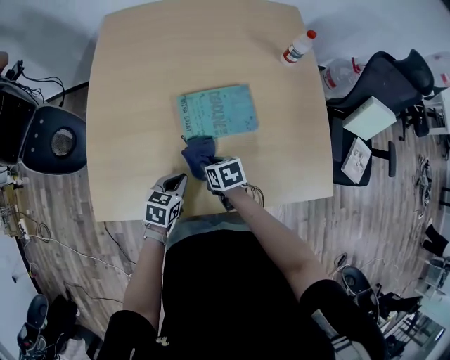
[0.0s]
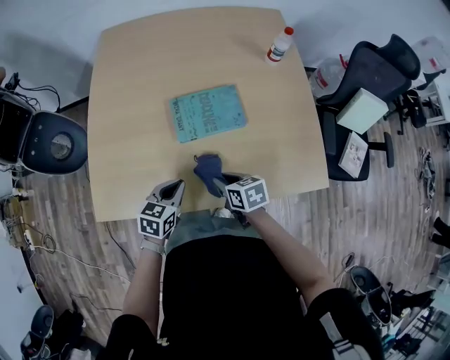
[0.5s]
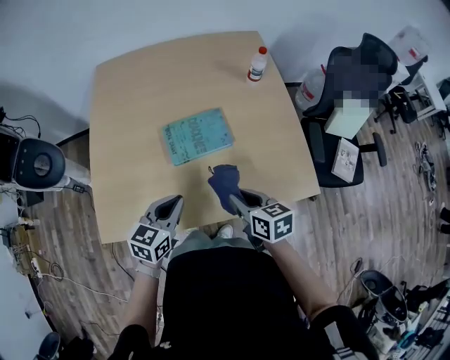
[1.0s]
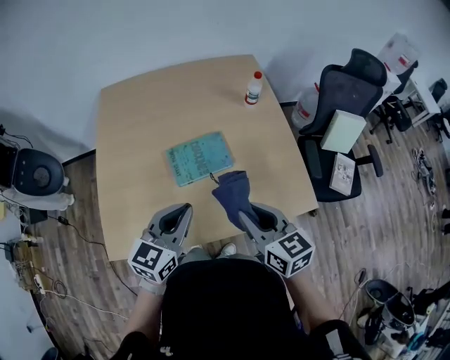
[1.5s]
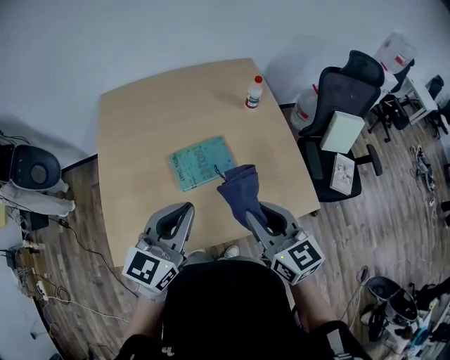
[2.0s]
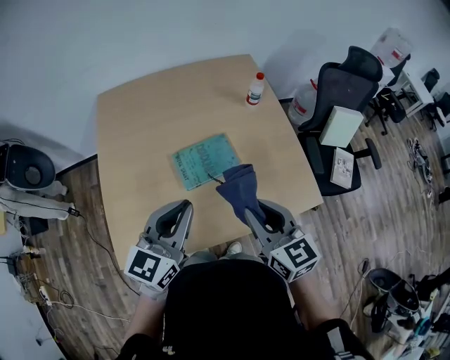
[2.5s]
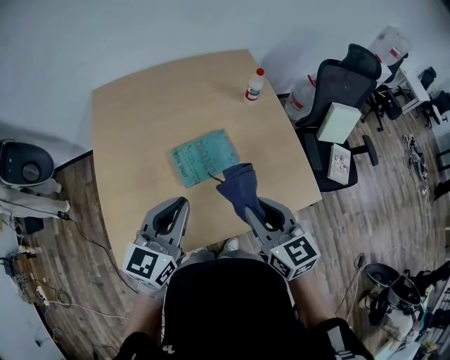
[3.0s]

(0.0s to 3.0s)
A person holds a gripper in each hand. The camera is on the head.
0.0s - 1.5s: The right gripper goes some 35 cm upward and to the right, and angles its fingers upward, by approximately 40 degrees; the left gripper shifts about 30 cm upward, and angles its fingers upward, by some 30 degrees.
1.5s - 3.0s: The left gripper travels to the left by some 5 cm, while the right gripper shifts by some 5 cm.

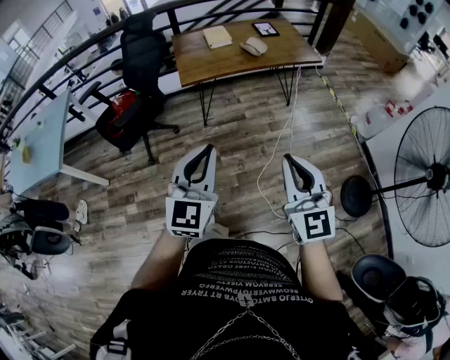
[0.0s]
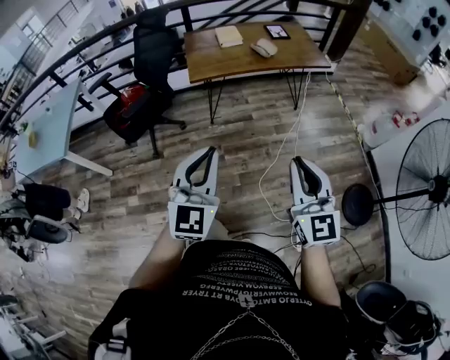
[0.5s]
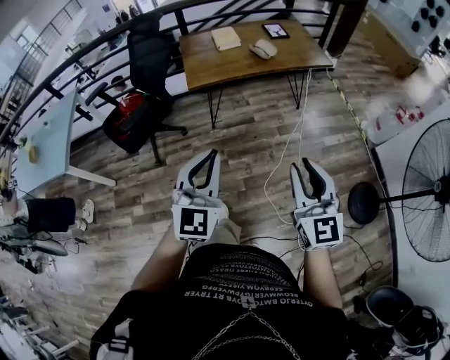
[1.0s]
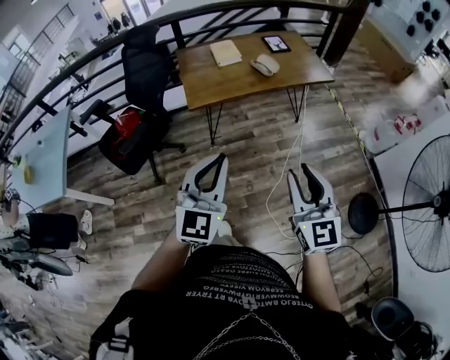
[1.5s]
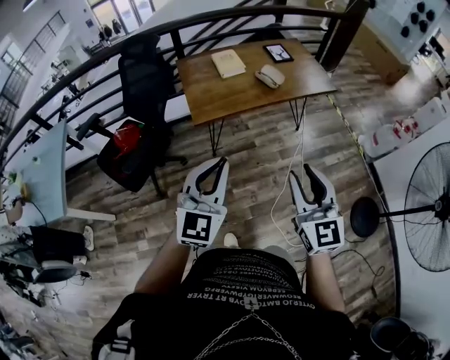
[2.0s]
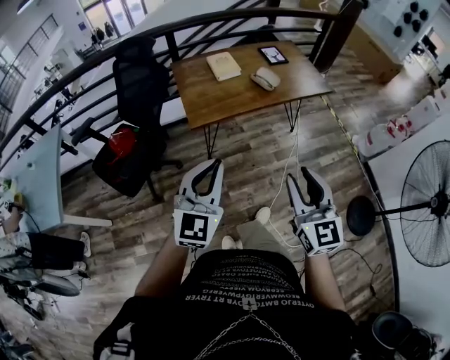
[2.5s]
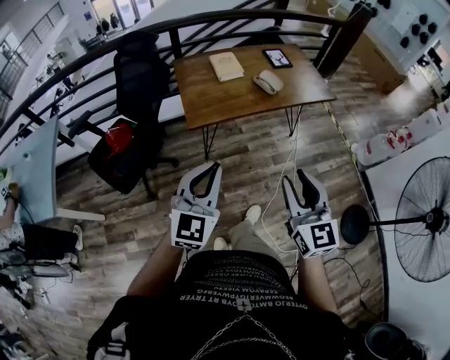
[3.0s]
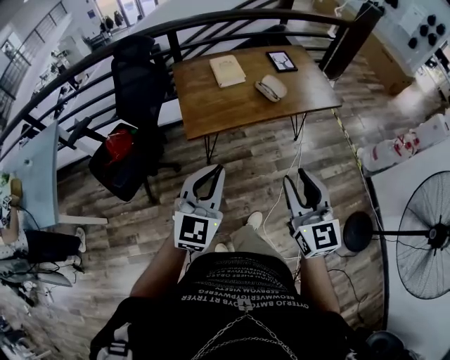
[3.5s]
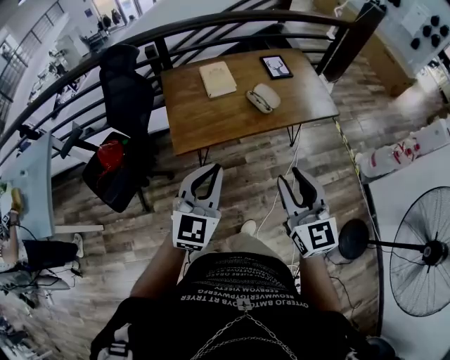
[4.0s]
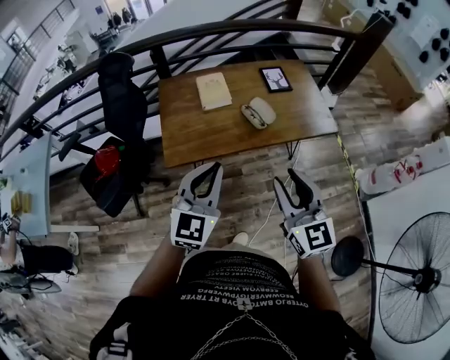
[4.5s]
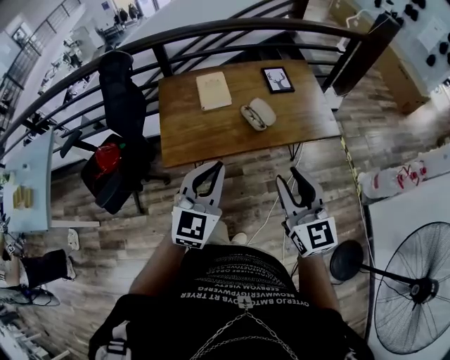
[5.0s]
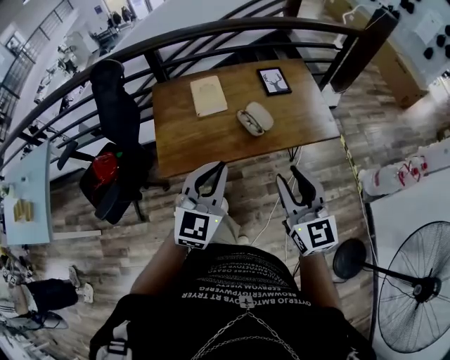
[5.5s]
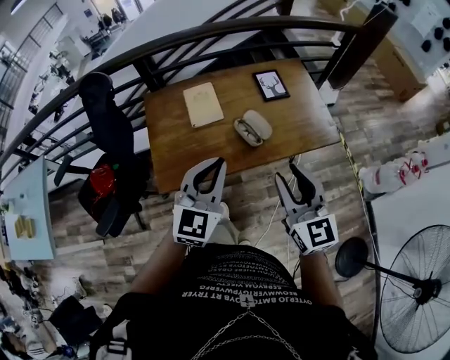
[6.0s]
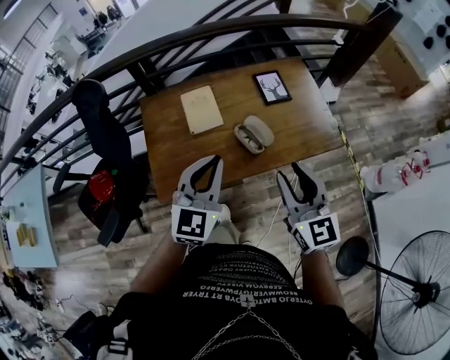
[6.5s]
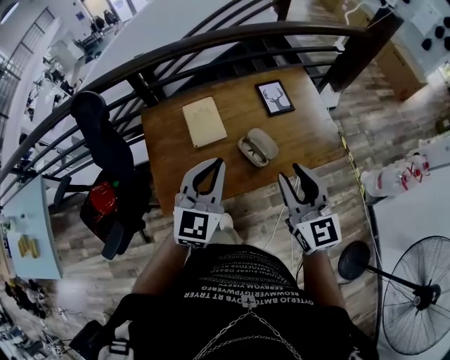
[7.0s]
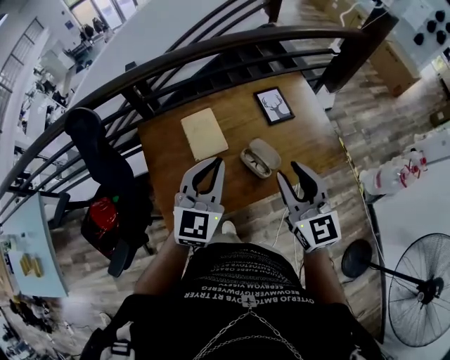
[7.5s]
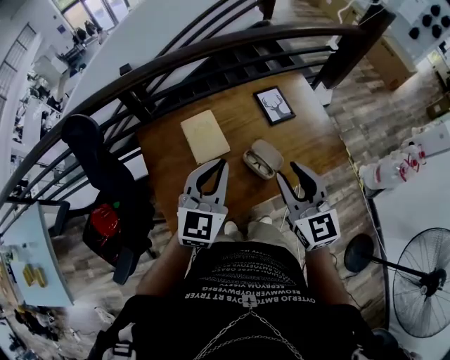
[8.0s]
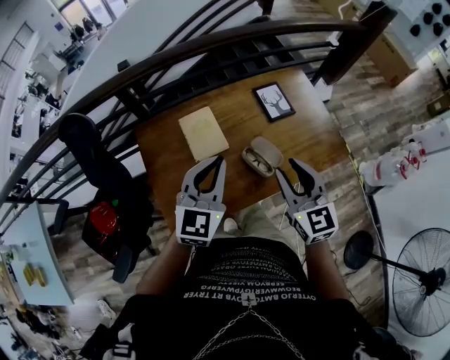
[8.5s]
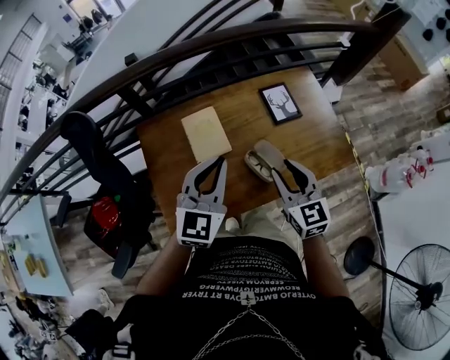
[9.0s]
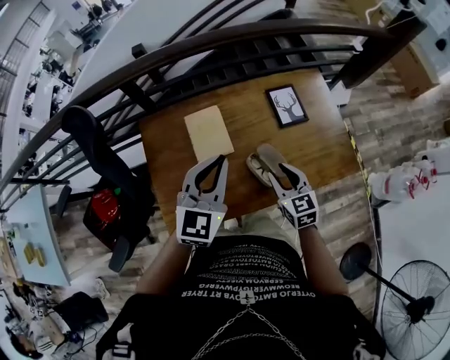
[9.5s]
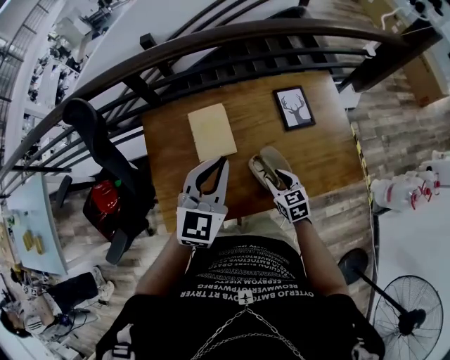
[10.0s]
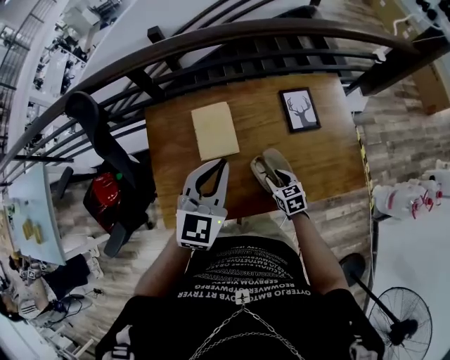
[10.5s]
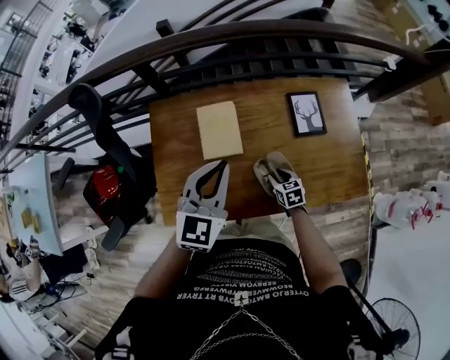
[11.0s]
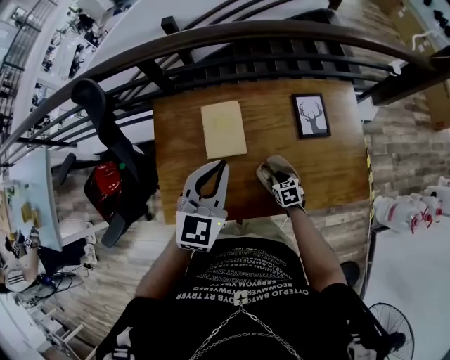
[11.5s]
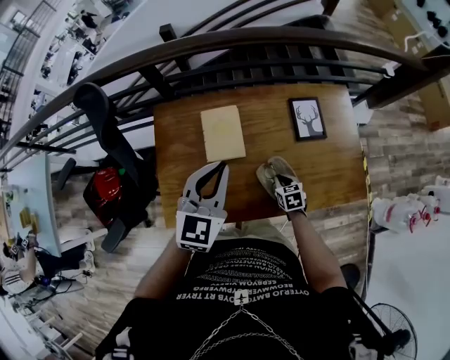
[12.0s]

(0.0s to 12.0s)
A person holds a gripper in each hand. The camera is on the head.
0.0s - 2.0s: The two grippers go some 20 cm forward. The right gripper opens its fingers.
2.0s - 4.0s: The grippers both shift forward by roughly 20 cm.
4.0s - 6.0s: The grippers both shift forward and to the right by some 25 cm.
6.0s - 8.0s: The right gripper travels forward and to the left by about 20 cm; the left gripper shifts approximately 20 cm forward.
8.0s - 10.0s: The right gripper moves downward, about 30 cm, and points its fingers approximately 30 degrees further downward. Meanwhile the left gripper is displaced forward by some 5 cm.
10.0s - 12.0s: The right gripper heads downward, covering some 10 cm, and closes its fingers.

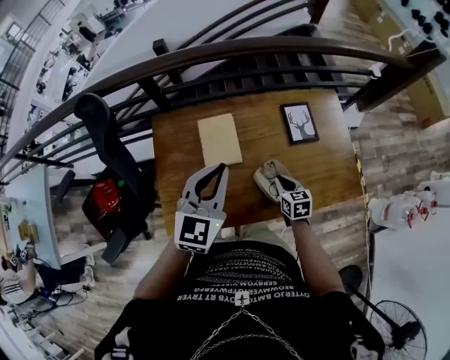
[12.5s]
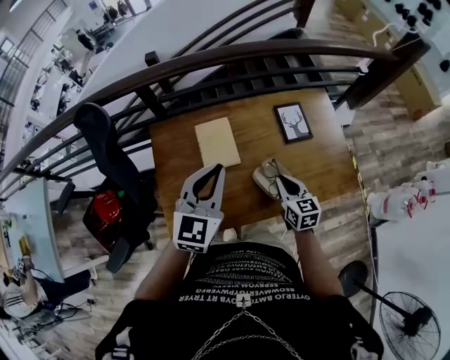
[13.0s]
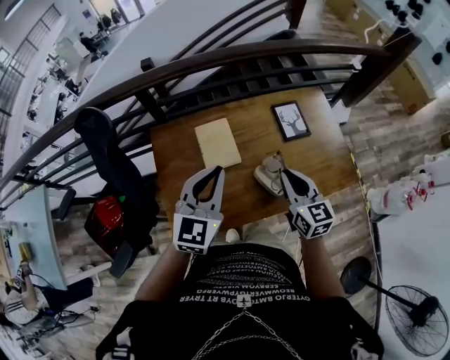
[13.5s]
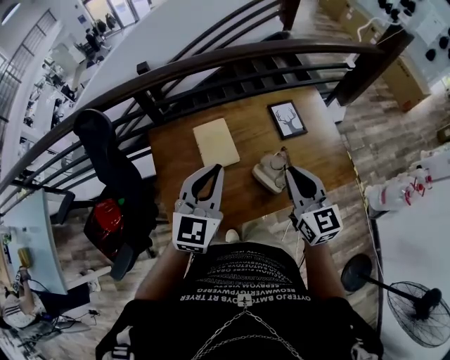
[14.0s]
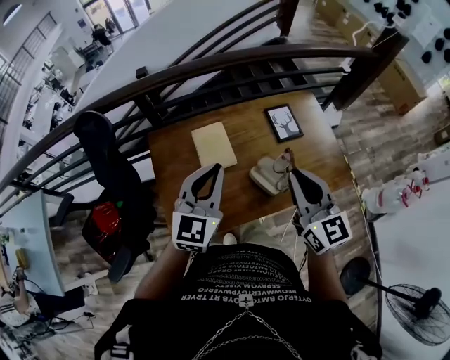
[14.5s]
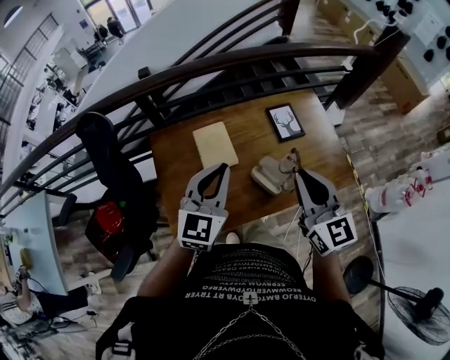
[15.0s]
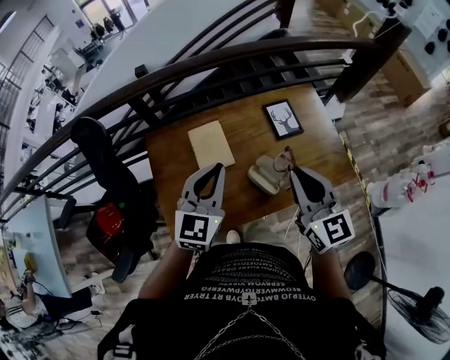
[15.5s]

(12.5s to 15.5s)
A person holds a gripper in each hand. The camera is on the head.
12.5s - 14.0s: The left gripper shifts by about 5 cm; the right gripper heads upward, covering roughly 25 cm, and angles its fingers upward, by approximately 30 degrees.
14.0s - 15.5s: The right gripper heads upward, covering some 5 cm.

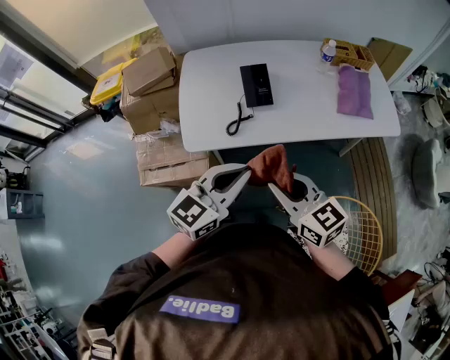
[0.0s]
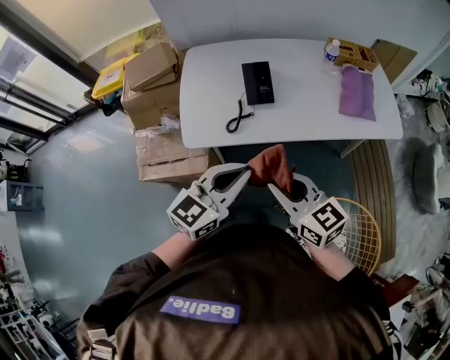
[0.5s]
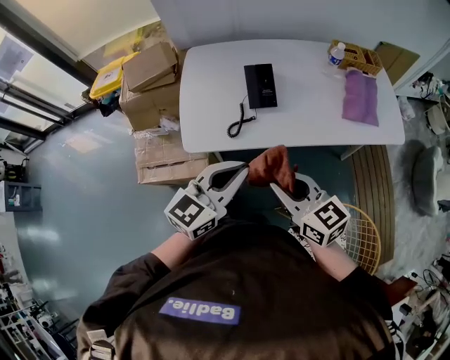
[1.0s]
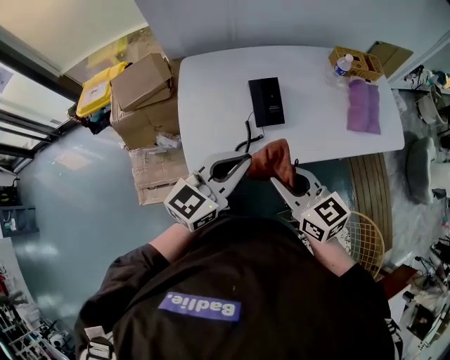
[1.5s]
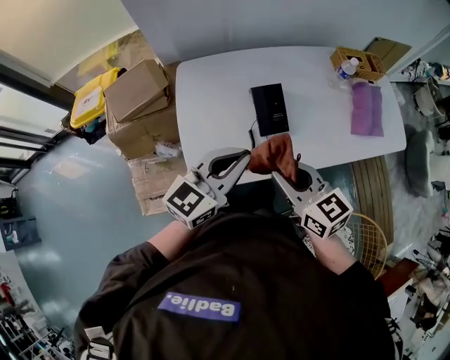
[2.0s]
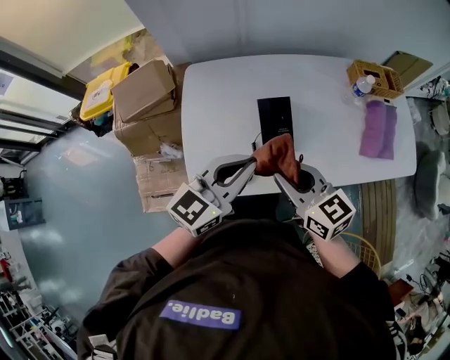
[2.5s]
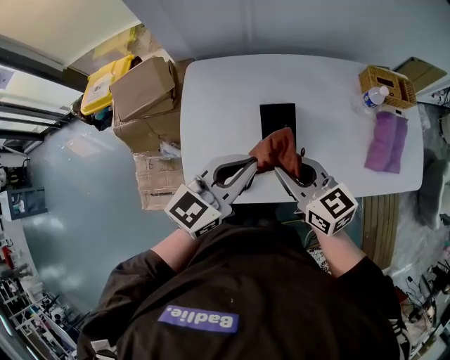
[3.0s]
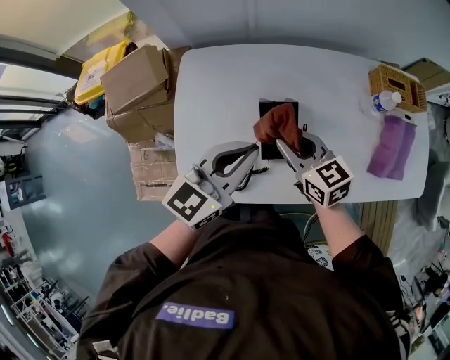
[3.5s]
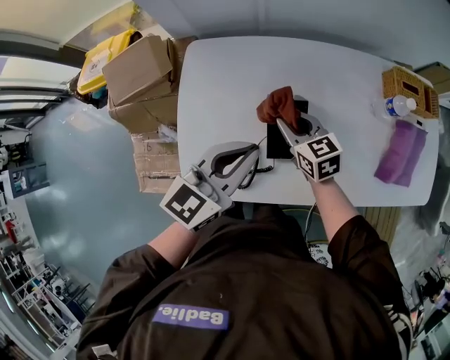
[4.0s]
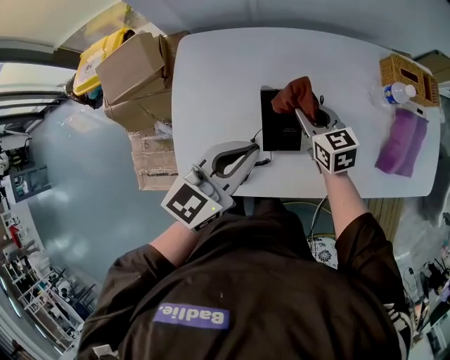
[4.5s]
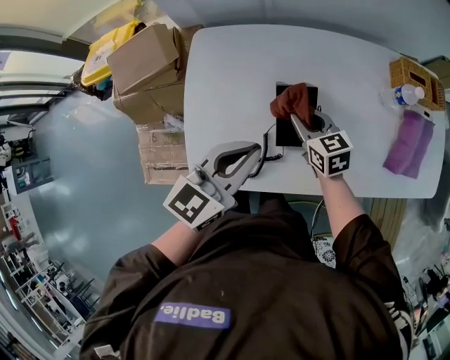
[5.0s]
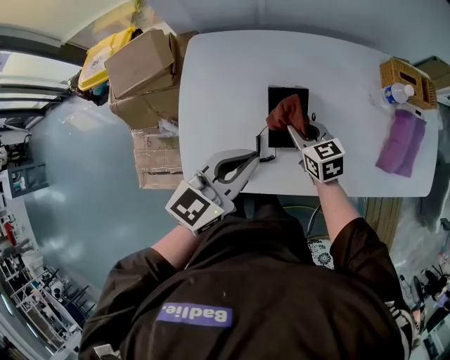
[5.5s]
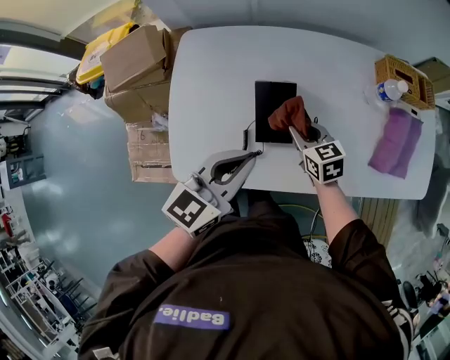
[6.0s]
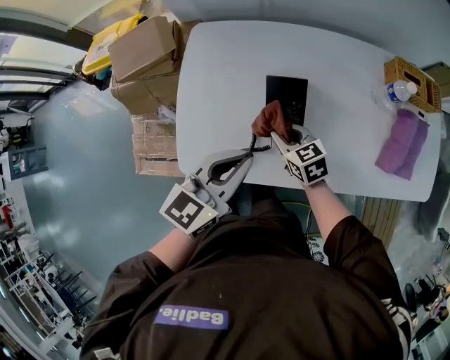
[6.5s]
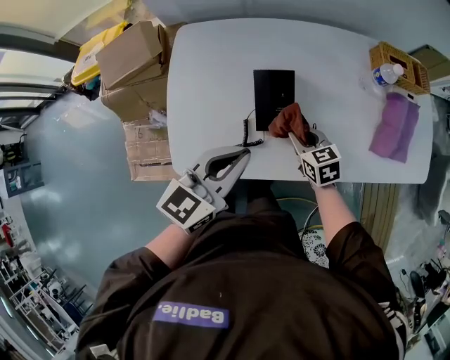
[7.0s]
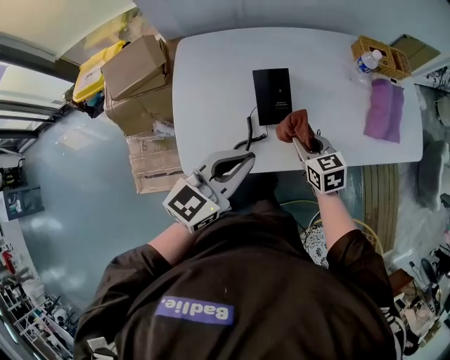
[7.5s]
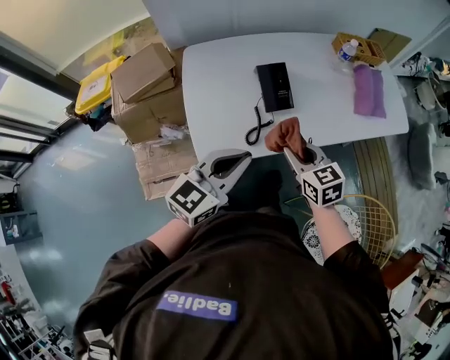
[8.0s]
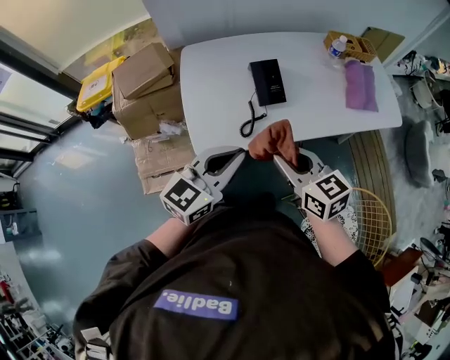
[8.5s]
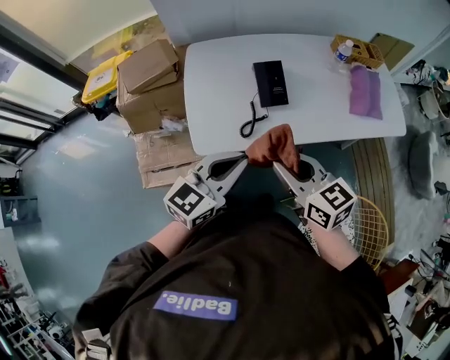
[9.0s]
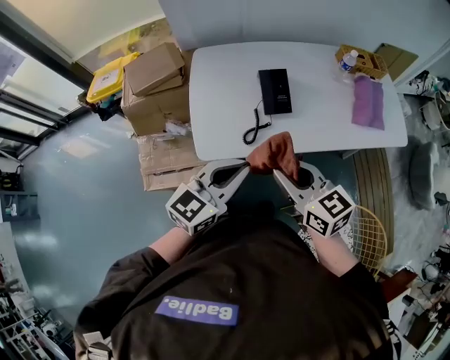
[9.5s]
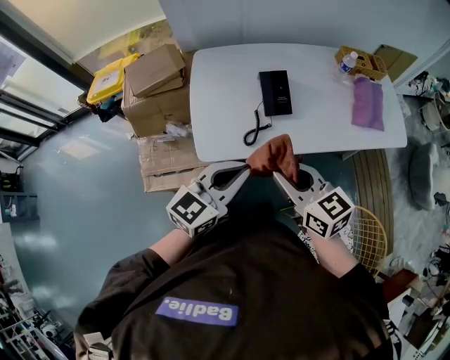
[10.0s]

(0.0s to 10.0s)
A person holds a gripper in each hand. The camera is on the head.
0.0s - 2.0s: Both grippers move forward and to the left, some 20 cm.
2.0s - 4.0s: The left gripper travels forward by roughly 15 cm; the right gripper goes roughly 30 cm forward and downward.
4.0s - 6.0s: The right gripper swings left and right, roughly 10 cm each way, with 2 reversals. Meanwhile the left gripper is displaced backward by about 5 cm.
6.0s - 8.0s: The left gripper moves backward and to the left, about 20 cm, and turns by some 20 degrees. The right gripper goes approximately 25 cm backward and upward.
8.0s - 10.0s: The right gripper shifts some 15 cm upward and backward, while the left gripper changes place by approximately 5 cm.
